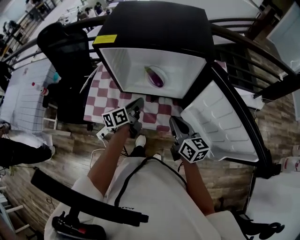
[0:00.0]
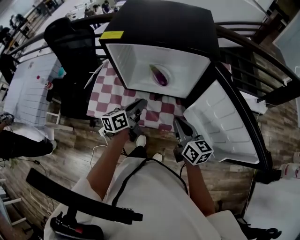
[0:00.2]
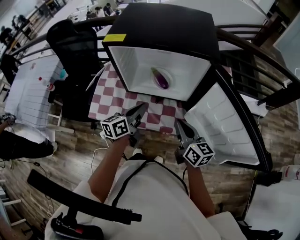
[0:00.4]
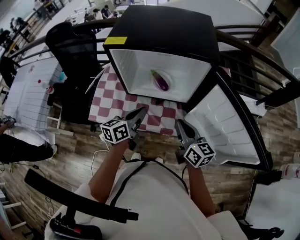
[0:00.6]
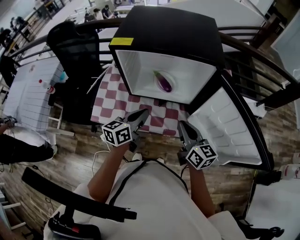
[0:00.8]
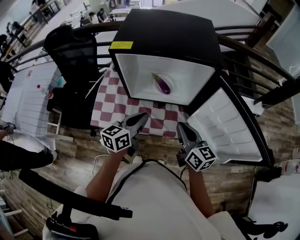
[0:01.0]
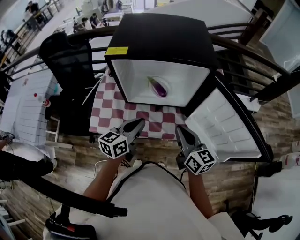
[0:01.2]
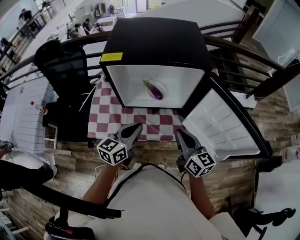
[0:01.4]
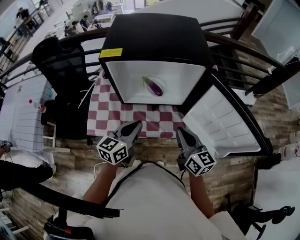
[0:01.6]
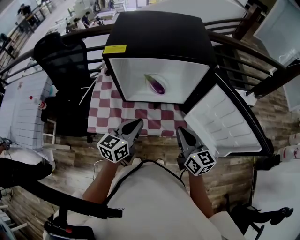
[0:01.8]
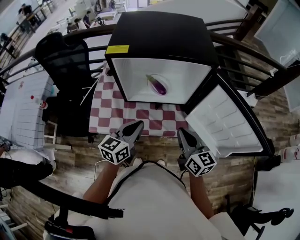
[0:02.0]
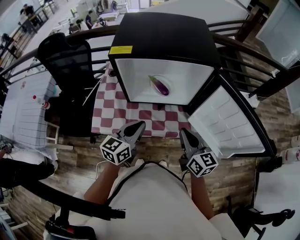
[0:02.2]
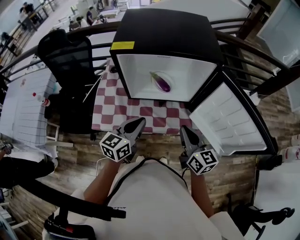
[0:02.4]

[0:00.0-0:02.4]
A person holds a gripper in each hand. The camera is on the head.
0:00.0 to 0:01.2: The right gripper goes approximately 5 cm upward.

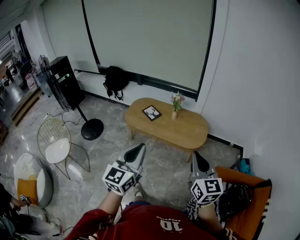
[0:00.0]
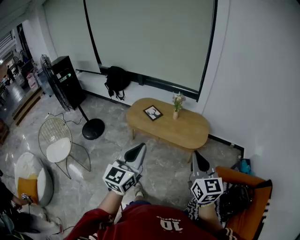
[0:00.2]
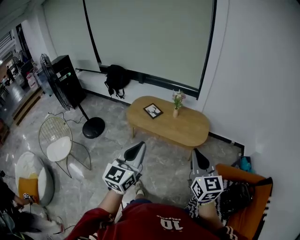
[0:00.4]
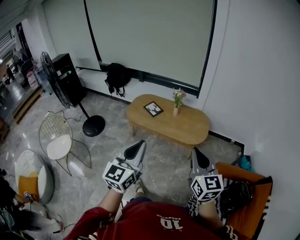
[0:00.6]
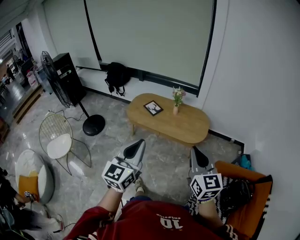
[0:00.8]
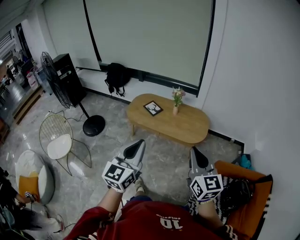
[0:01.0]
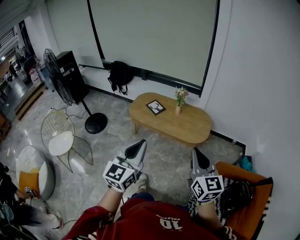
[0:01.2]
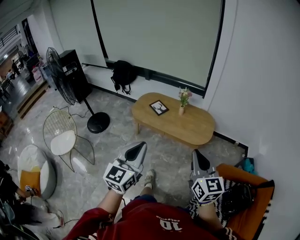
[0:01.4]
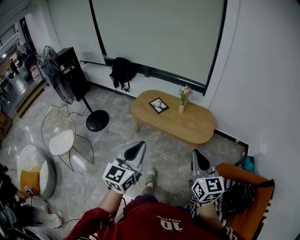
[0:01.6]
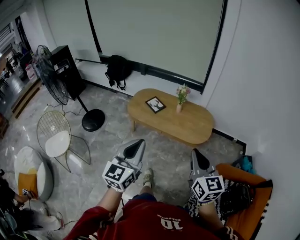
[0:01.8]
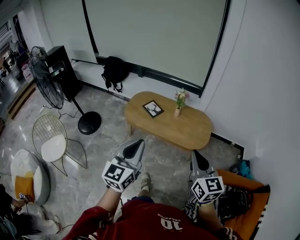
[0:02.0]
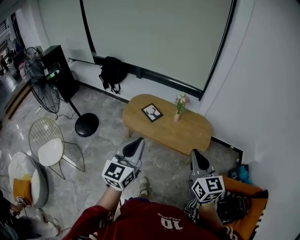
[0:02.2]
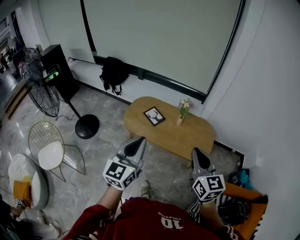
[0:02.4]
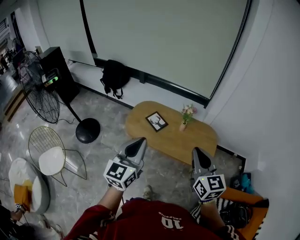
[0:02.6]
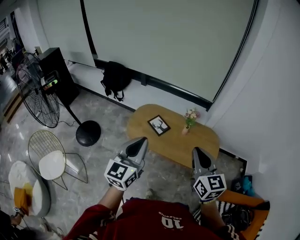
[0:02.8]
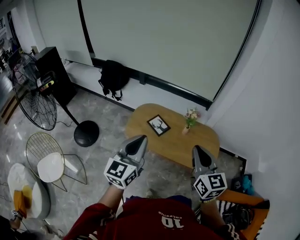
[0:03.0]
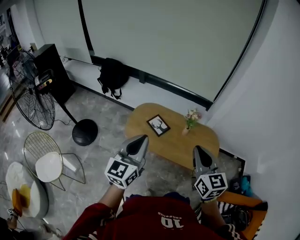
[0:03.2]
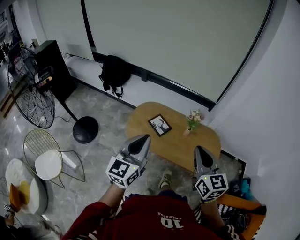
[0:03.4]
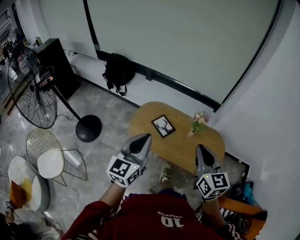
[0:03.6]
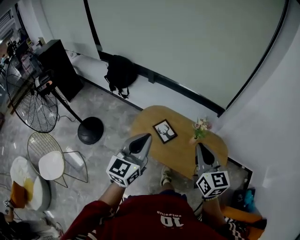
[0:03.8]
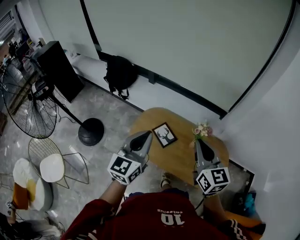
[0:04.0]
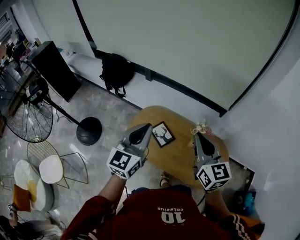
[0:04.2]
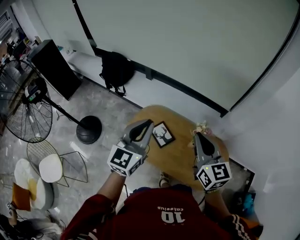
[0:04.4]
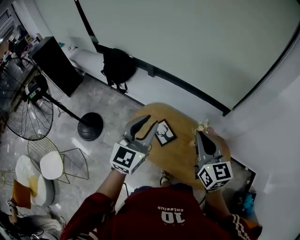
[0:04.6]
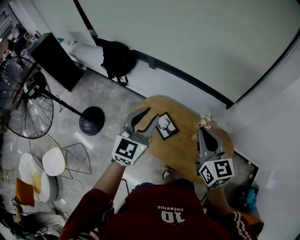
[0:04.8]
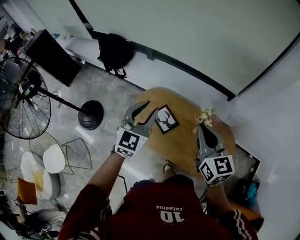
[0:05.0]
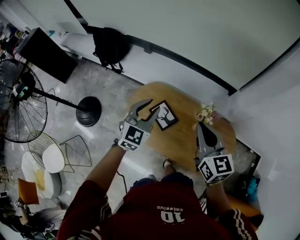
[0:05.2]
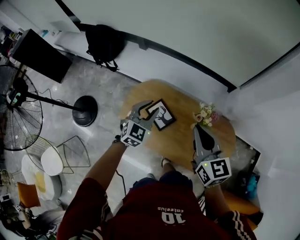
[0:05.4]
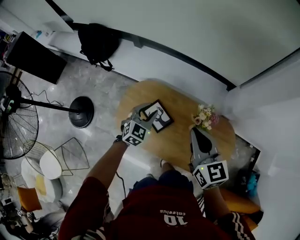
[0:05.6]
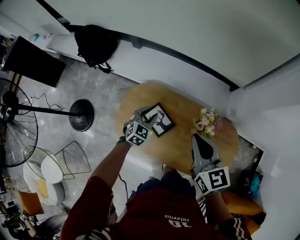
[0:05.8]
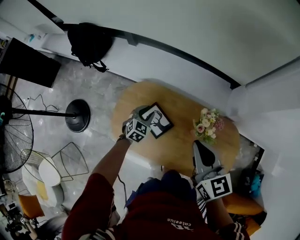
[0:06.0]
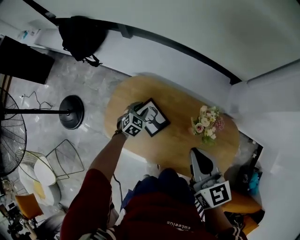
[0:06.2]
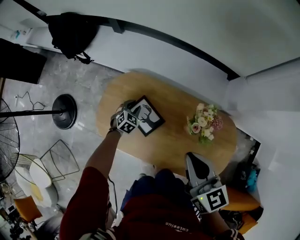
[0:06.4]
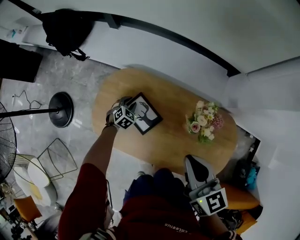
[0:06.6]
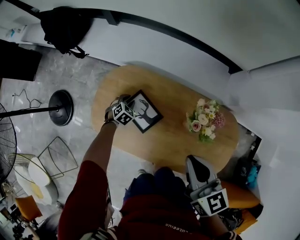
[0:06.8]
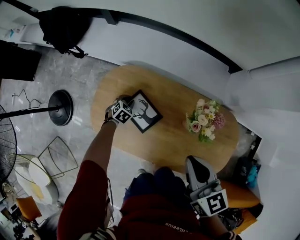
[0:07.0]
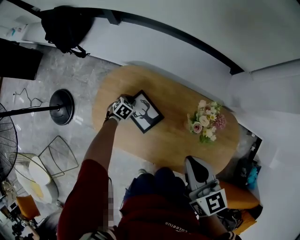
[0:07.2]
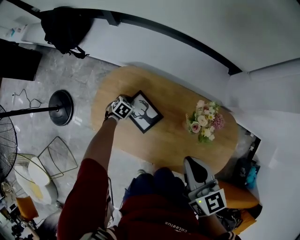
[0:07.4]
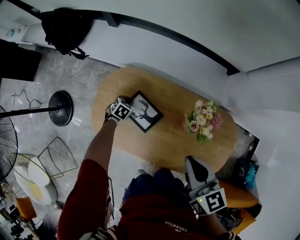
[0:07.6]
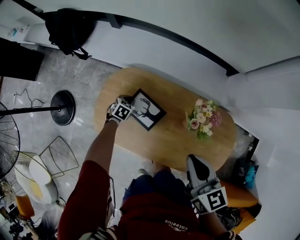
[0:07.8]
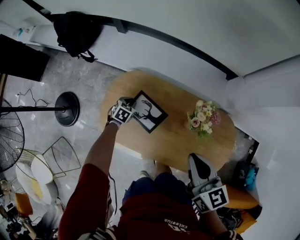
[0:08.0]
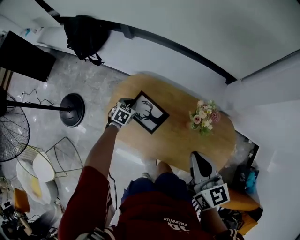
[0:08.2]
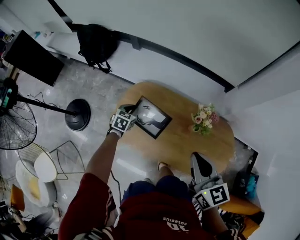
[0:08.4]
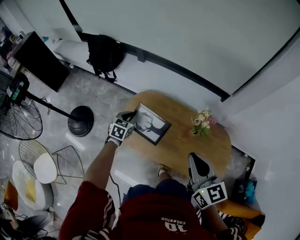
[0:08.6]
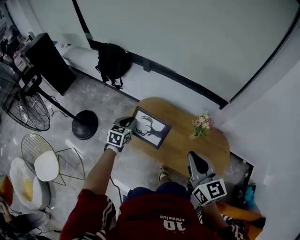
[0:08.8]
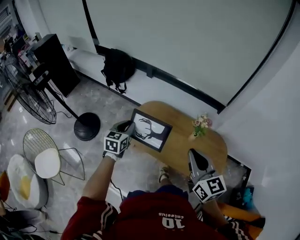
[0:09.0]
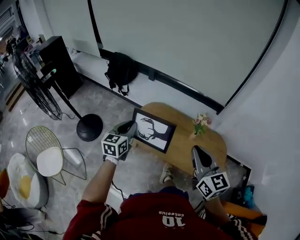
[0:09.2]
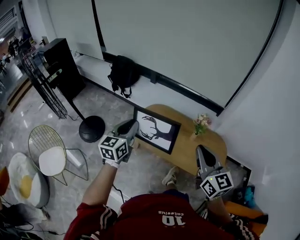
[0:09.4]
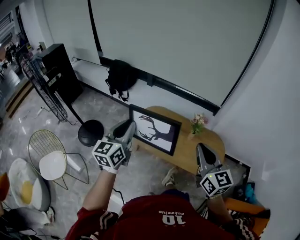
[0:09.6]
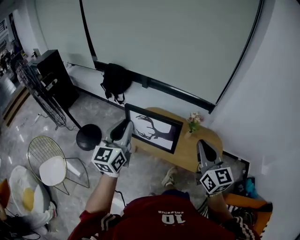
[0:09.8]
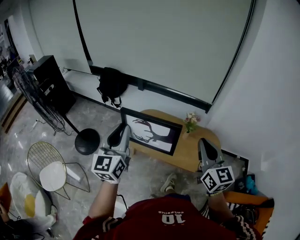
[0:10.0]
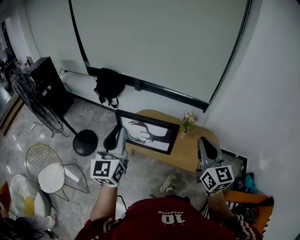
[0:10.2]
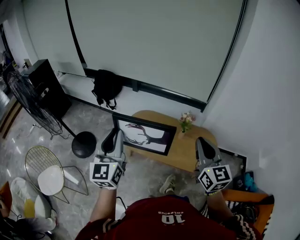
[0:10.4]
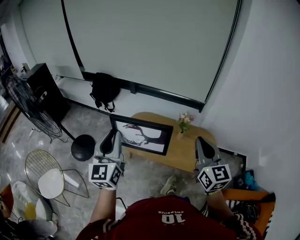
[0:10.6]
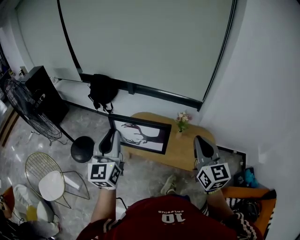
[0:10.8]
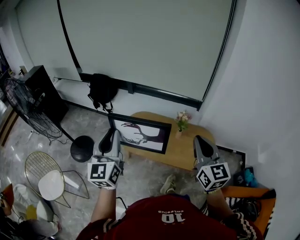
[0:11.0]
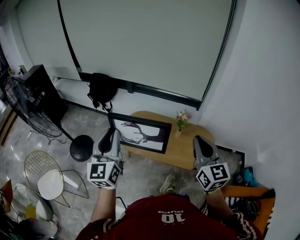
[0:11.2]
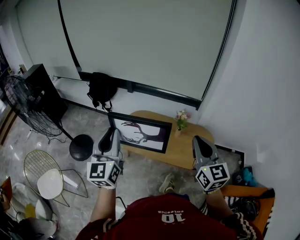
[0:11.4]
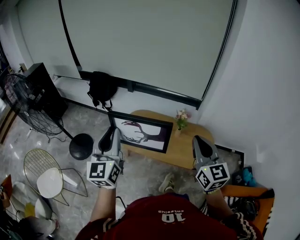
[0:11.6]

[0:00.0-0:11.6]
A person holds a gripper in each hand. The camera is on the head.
0:00.0 to 0:01.4: There are only small adjustments of the grippers.
0:01.4 to 0:02.8: The two grippers go about 35 cm forward.
0:02.8 to 0:04.4: Both grippers move forward, roughly 35 cm.
0:04.4 to 0:05.8: The right gripper moves downward and forward, approximately 20 cm; the left gripper heads downward and forward, covering about 40 cm, tilts its fingers some 40 degrees downward, and opens up.
0:05.8 to 0:07.2: The right gripper travels downward by about 10 cm; the left gripper moves downward, approximately 30 cm, and swivels about 30 degrees.
0:07.2 to 0:08.8: The right gripper shifts roughly 30 cm upward and backward; the left gripper heads upward and backward, covering about 50 cm, and angles its fingers upward, by approximately 30 degrees.
0:08.8 to 0:10.2: The right gripper shifts roughly 25 cm backward and upward. The left gripper heads upward and backward, covering some 50 cm, and angles its fingers upward, by approximately 40 degrees.
0:10.2 to 0:11.6: Both grippers stay about where they are.

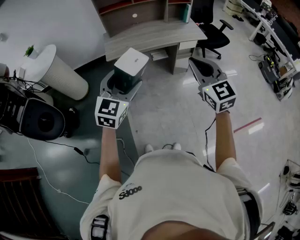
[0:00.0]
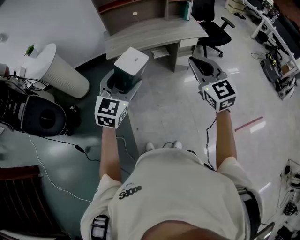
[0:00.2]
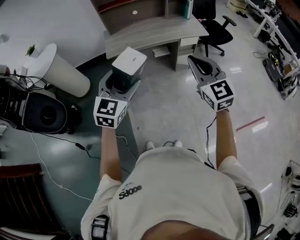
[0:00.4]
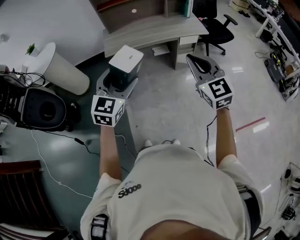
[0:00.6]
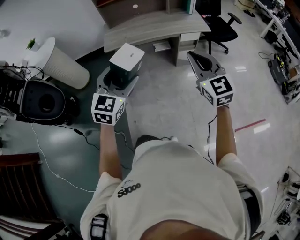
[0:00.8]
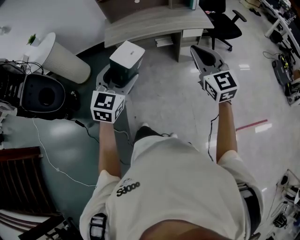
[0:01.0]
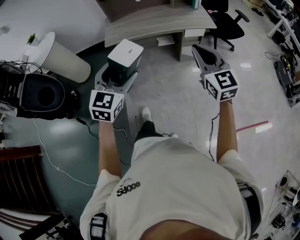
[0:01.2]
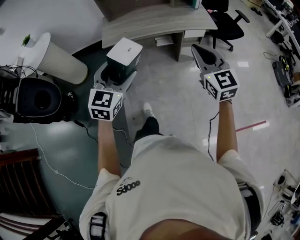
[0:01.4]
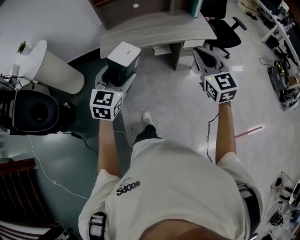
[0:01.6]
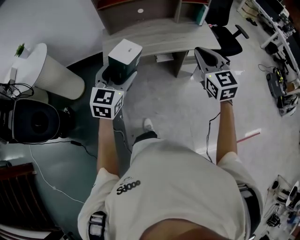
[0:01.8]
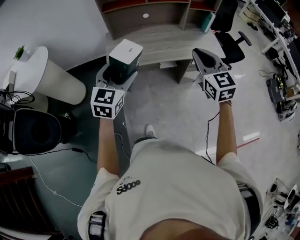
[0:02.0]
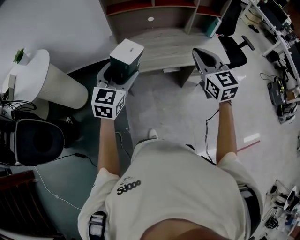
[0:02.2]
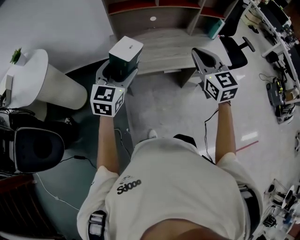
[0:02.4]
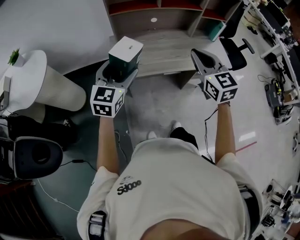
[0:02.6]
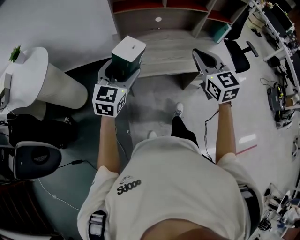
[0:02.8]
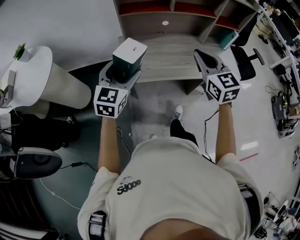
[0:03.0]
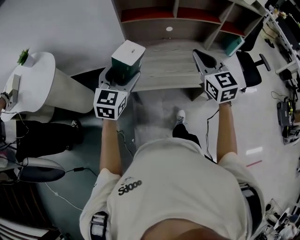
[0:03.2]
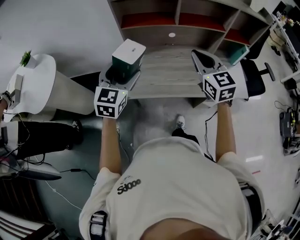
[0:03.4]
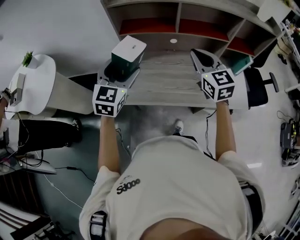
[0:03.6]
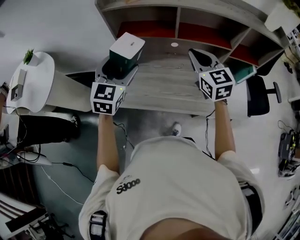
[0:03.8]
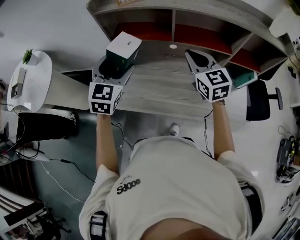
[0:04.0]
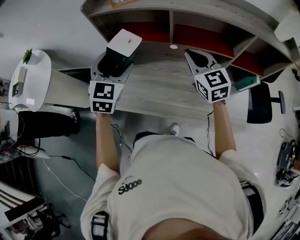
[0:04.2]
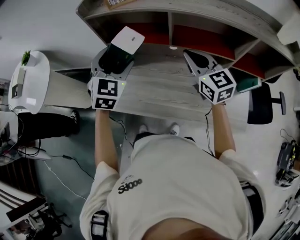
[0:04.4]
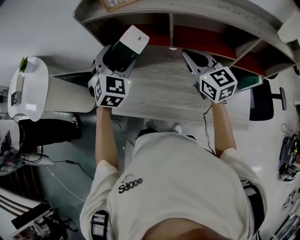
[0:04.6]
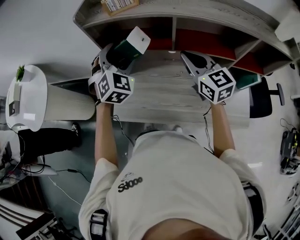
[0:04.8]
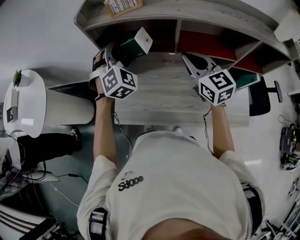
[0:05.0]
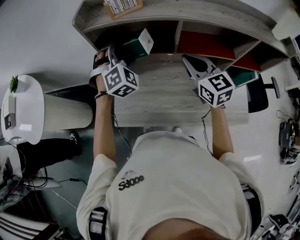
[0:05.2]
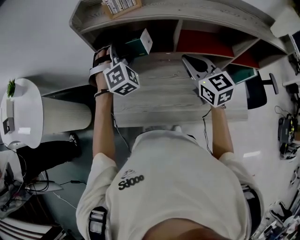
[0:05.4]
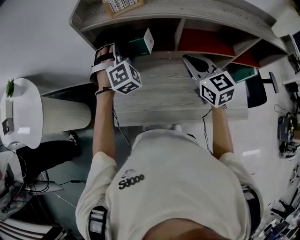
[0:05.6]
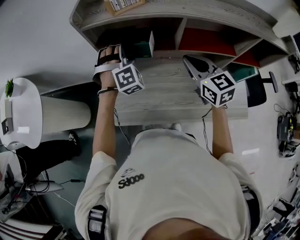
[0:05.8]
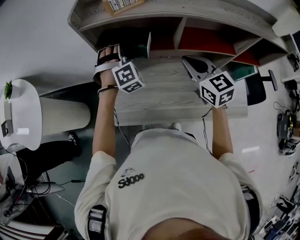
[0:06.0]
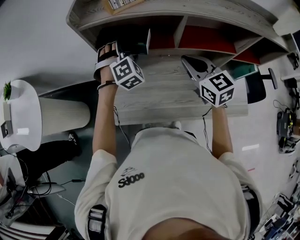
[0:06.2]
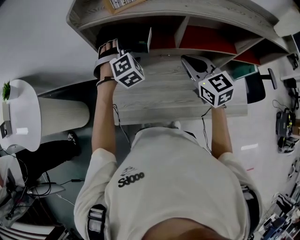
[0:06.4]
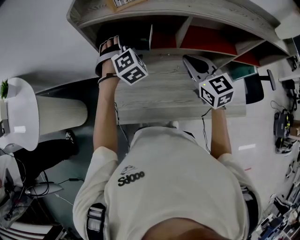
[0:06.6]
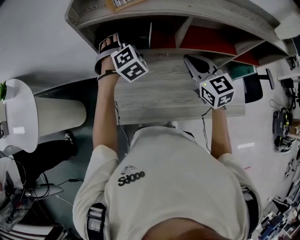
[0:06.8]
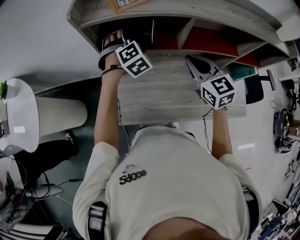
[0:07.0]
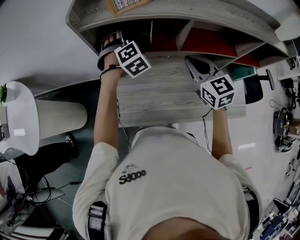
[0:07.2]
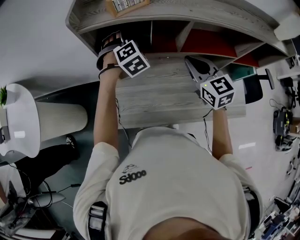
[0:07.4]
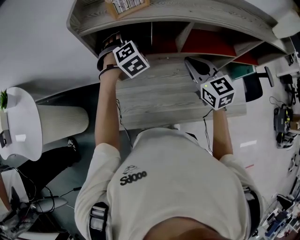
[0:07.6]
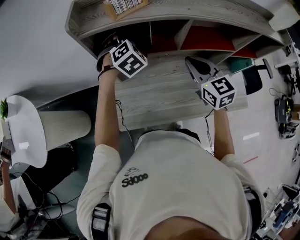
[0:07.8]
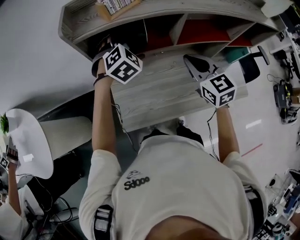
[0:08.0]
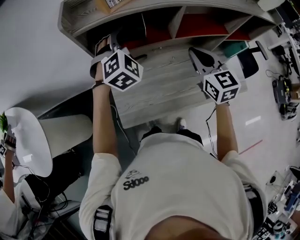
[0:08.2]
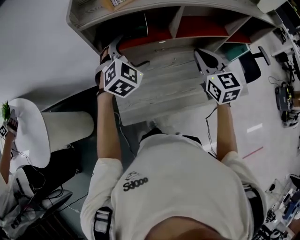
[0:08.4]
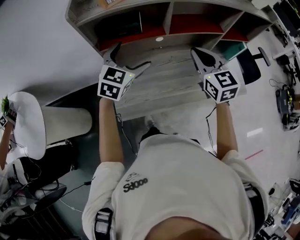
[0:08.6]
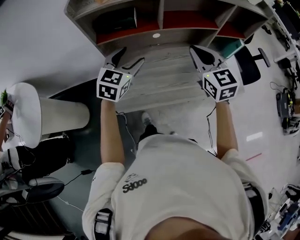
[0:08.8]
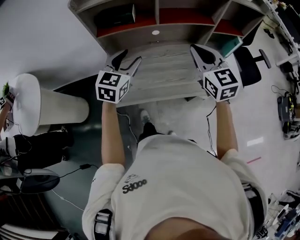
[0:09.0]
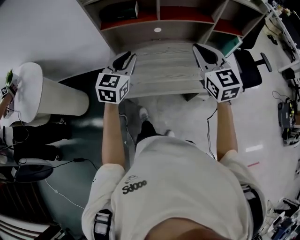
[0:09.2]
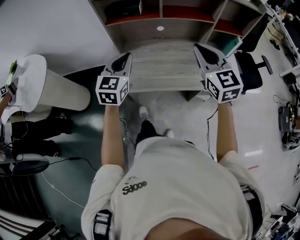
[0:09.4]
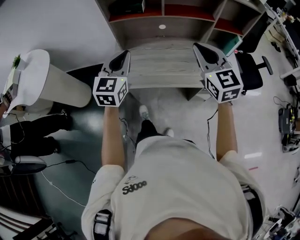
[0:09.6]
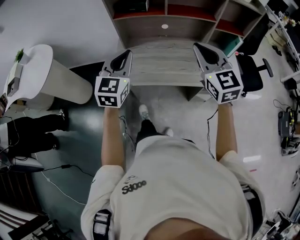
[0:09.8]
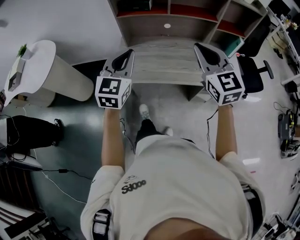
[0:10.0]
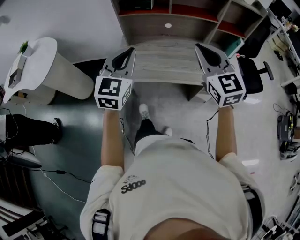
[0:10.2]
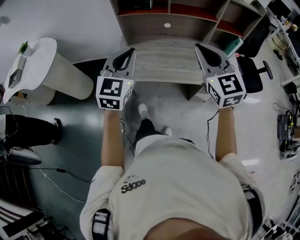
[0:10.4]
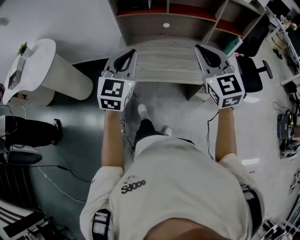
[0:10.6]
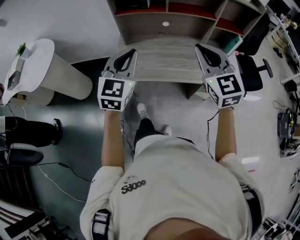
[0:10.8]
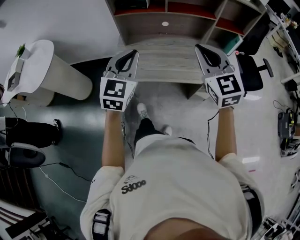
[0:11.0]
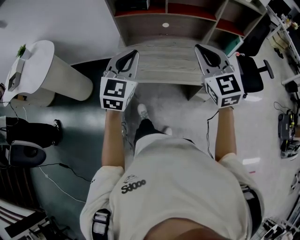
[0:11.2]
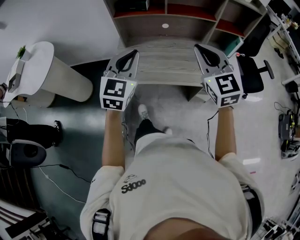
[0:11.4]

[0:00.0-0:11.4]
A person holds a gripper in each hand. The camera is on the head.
0:00.0 to 0:01.4: The grippers both shift forward, to the right and downward by approximately 15 cm.
0:01.4 to 0:02.8: The two grippers travel together, forward and to the left, approximately 40 cm.
0:02.8 to 0:04.2: The left gripper moves forward and to the right, roughly 35 cm, and rotates some 30 degrees. Meanwhile the right gripper goes some 35 cm forward.
0:04.2 to 0:05.6: The right gripper ends up roughly 5 cm from where it was. Meanwhile the left gripper goes about 15 cm forward, and twists some 50 degrees clockwise, seen from behind.
0:05.6 to 0:07.2: The left gripper shifts by approximately 10 cm.
0:07.2 to 0:08.6: The right gripper travels backward by approximately 10 cm, while the left gripper travels backward by roughly 15 cm, and rotates approximately 40 degrees.
0:08.6 to 0:10.0: The grippers both shift backward by about 30 cm. The left gripper swivels about 30 degrees, and closes.
0:10.0 to 0:11.4: The grippers stay close to where they were, moving slightly.
